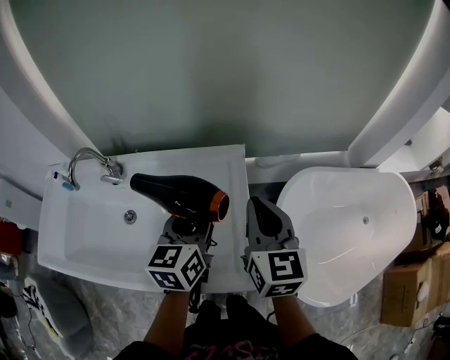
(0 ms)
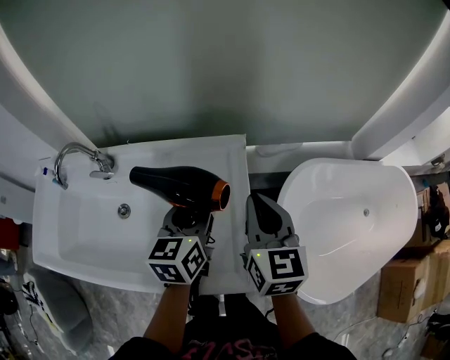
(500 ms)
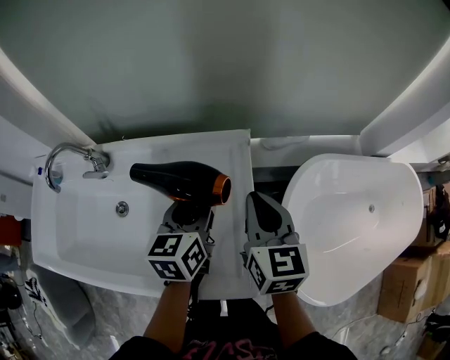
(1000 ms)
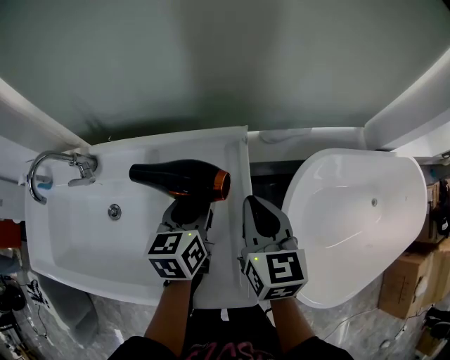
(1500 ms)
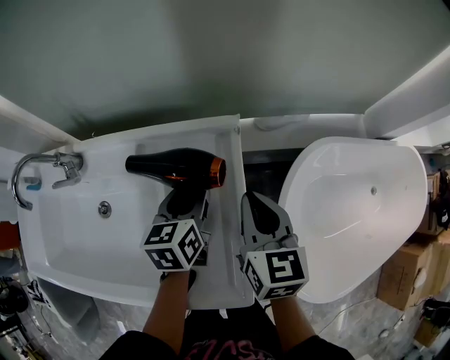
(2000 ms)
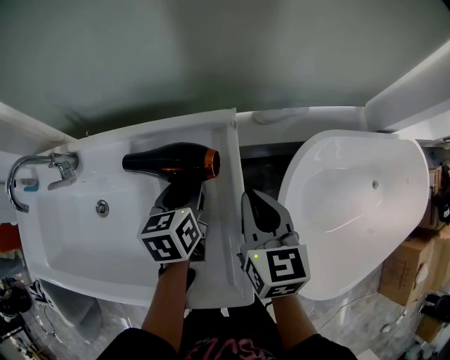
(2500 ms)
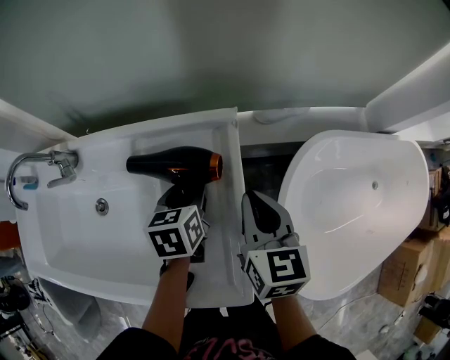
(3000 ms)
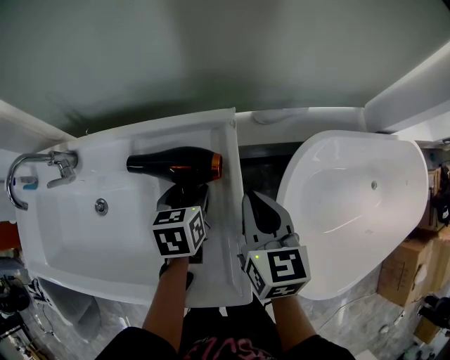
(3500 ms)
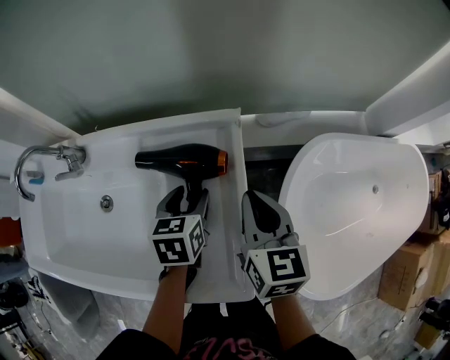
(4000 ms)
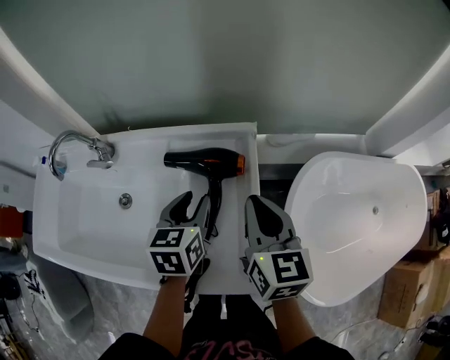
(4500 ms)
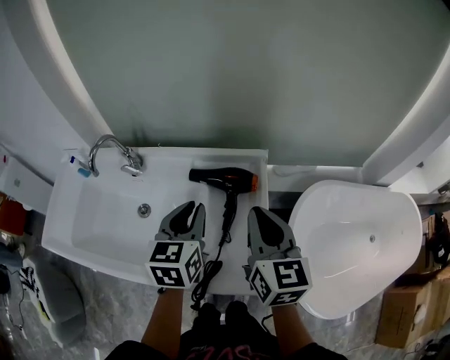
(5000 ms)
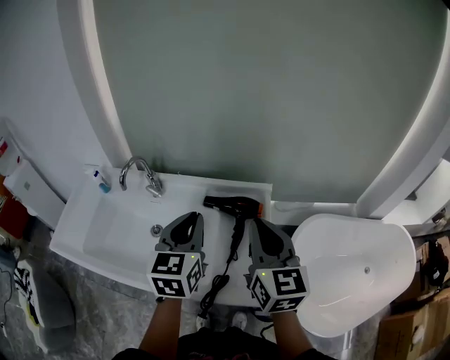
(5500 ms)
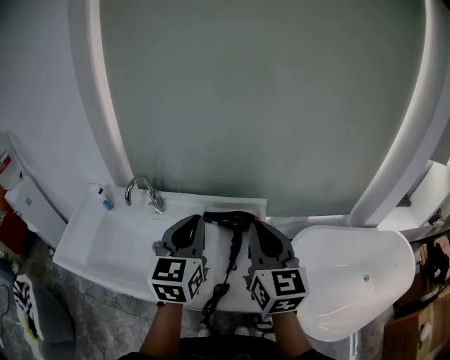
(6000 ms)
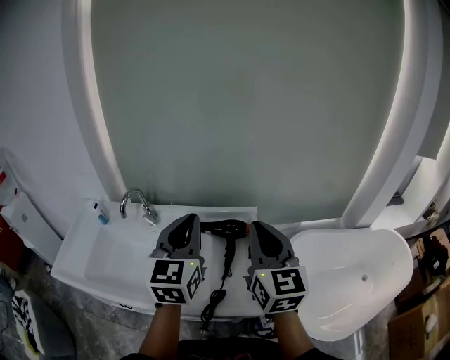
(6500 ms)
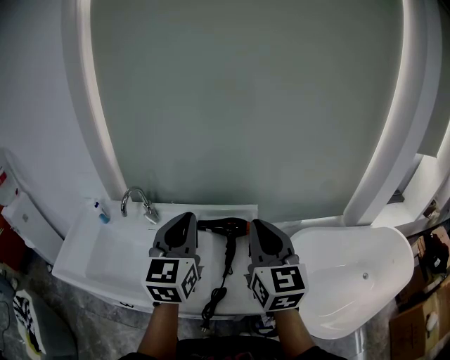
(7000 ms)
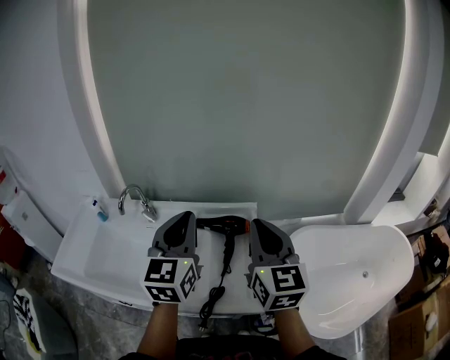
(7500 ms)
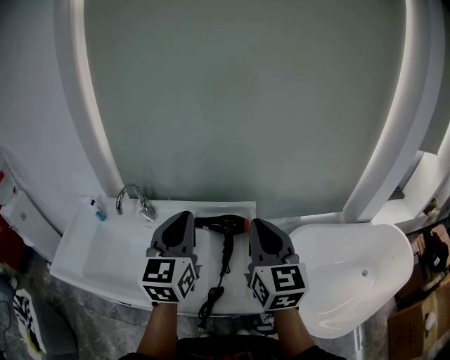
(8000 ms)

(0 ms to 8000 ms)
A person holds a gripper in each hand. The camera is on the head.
0 ms - 2000 ms: Both grippers move downward and forward, roughly 20 cm.
2000 ms - 4000 ms: The grippers make only small movements.
4000 ms - 6000 ms: The right gripper goes some 30 cm upward, backward and to the left, and changes its angle by some 30 degrees; the left gripper heads upward, covering some 35 cm, tilts its fingers about 40 degrees upward, and closes up.
6000 ms - 8000 ms: There are only small adjustments of the grippers.

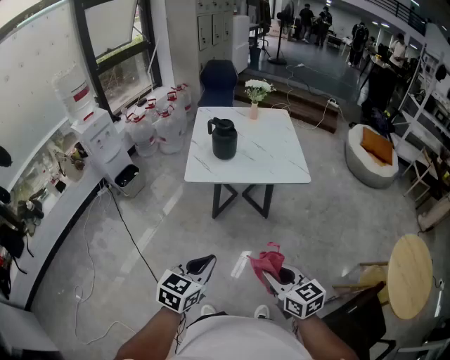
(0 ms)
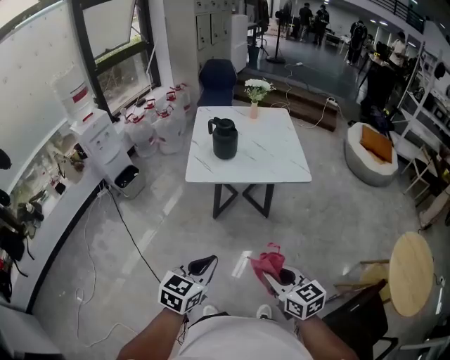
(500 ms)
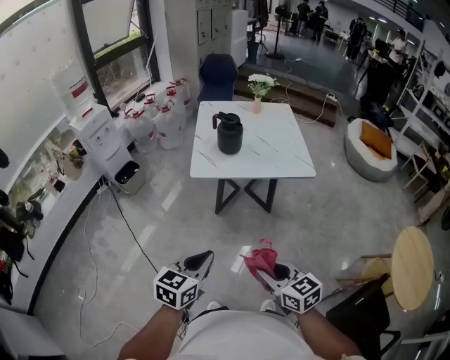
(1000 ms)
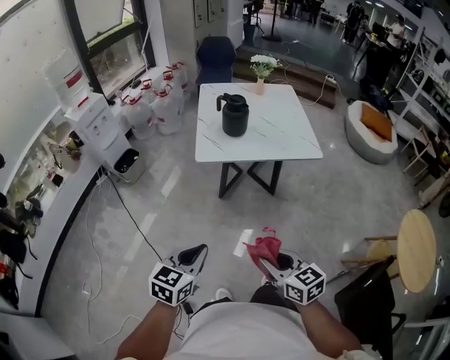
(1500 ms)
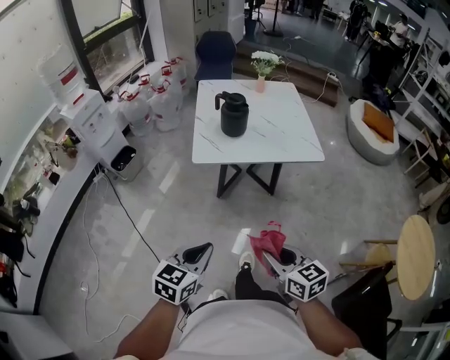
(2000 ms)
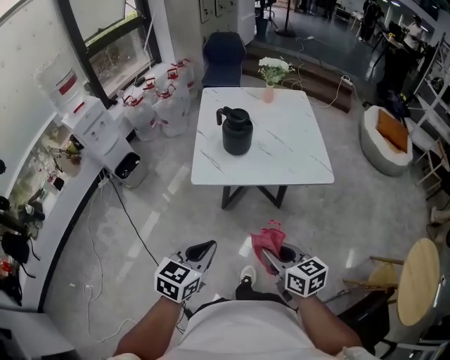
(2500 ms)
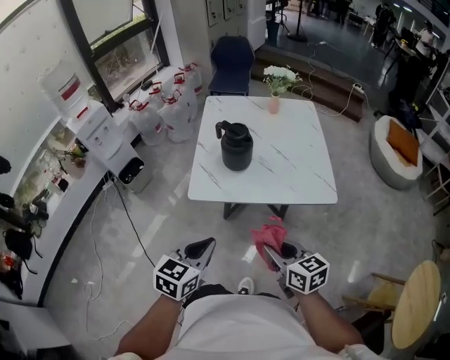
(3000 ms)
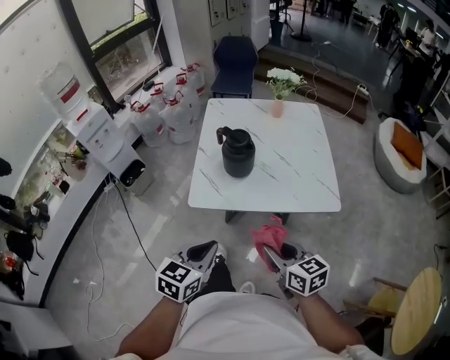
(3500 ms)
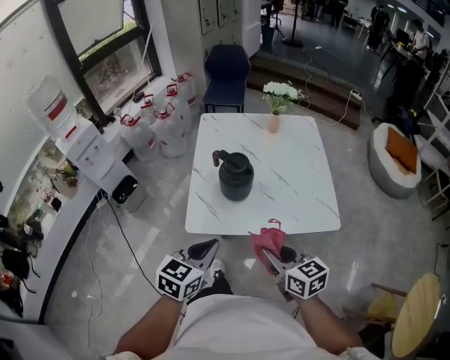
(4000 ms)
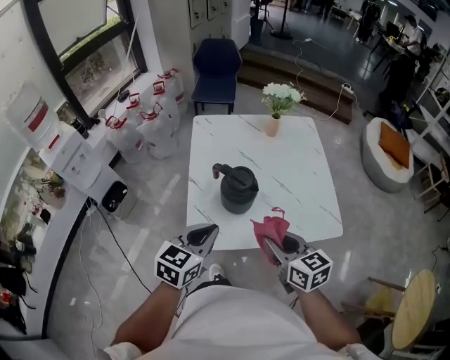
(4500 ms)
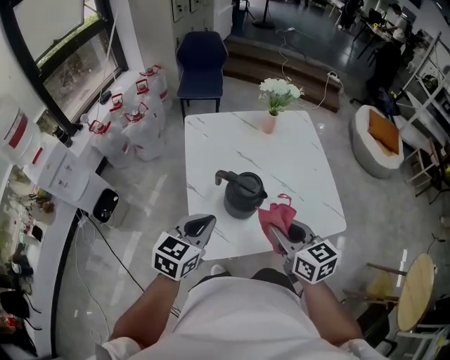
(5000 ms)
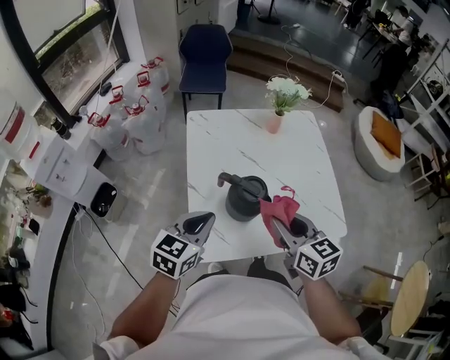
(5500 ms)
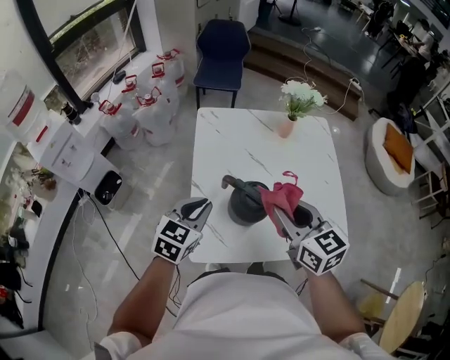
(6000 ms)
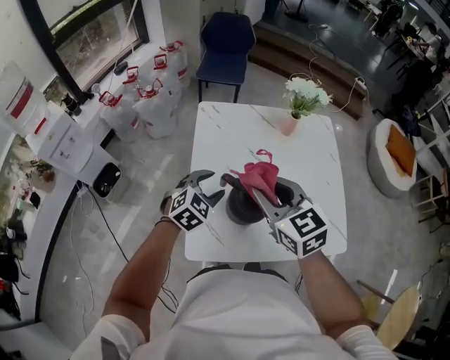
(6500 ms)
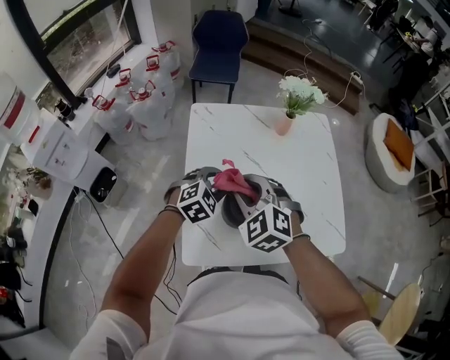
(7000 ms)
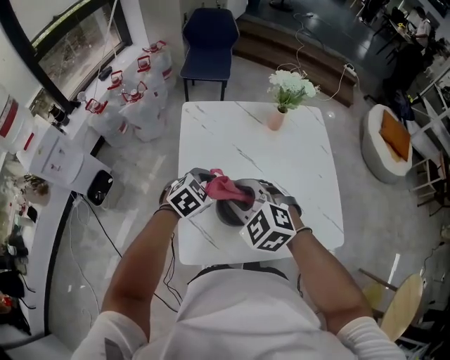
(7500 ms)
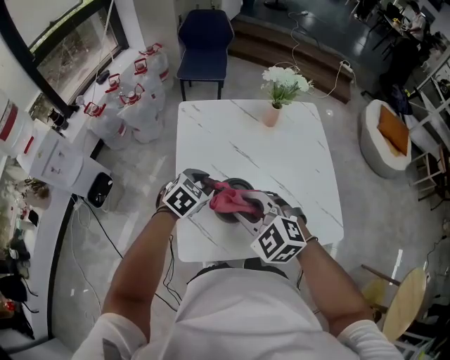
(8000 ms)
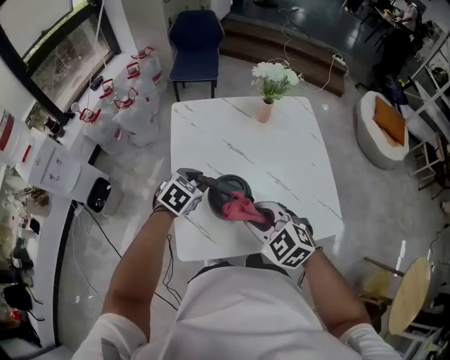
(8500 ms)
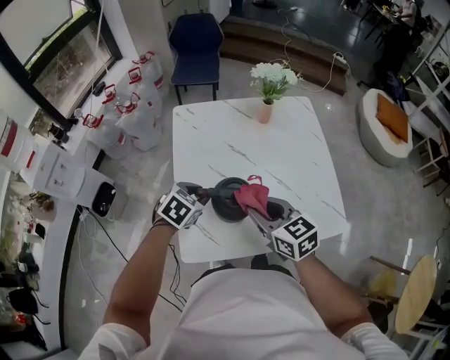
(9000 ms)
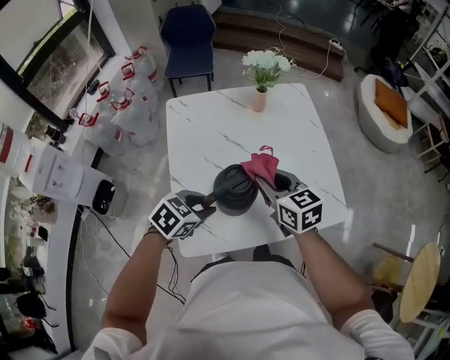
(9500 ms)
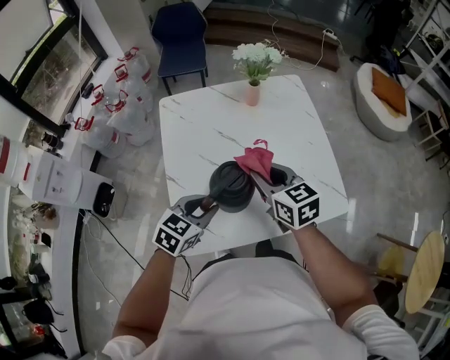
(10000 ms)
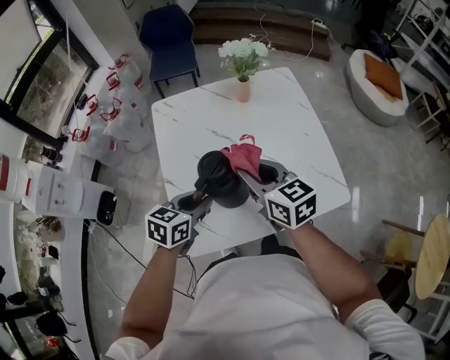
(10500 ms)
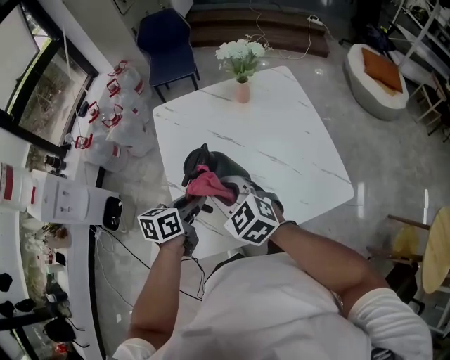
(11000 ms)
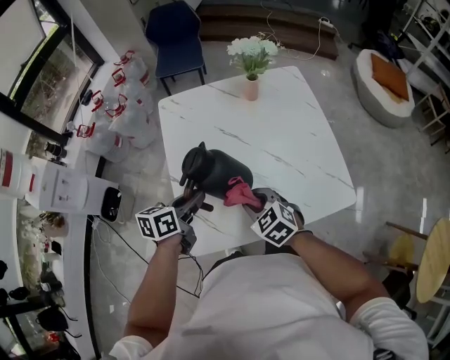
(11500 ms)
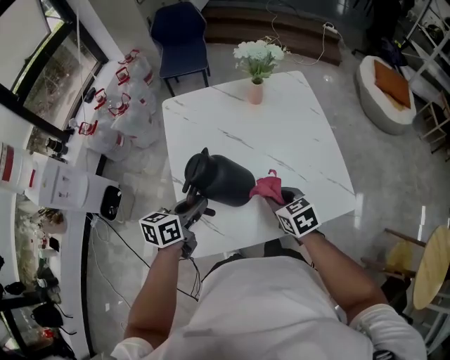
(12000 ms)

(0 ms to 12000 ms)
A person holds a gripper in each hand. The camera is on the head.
0 ms - 2000 ms: Both grippers move to the left, roughly 10 cm.
2000 ms - 4000 ms: Both grippers move forward, about 35 cm.
4000 ms - 6000 ms: The right gripper is displaced forward by about 25 cm; the left gripper moves forward and to the left, about 30 cm.
6000 ms - 8000 ms: The right gripper moves downward and to the left, roughly 10 cm, and rolls counterclockwise, seen from behind, by approximately 40 degrees, while the left gripper heads downward, forward and to the right, covering about 15 cm, turns by roughly 30 degrees, and opens and closes again.
8000 ms - 10000 ms: The right gripper heads to the right and forward, covering some 10 cm, and rotates around the line of its fingers by roughly 50 degrees, clockwise from behind; the left gripper heads backward and to the right, covering approximately 10 cm.
10000 ms - 12000 ms: The right gripper goes about 15 cm downward and backward, moves approximately 10 cm to the left and comes back, and swivels about 20 degrees; the left gripper moves to the left, approximately 5 cm, and turns by about 40 degrees.

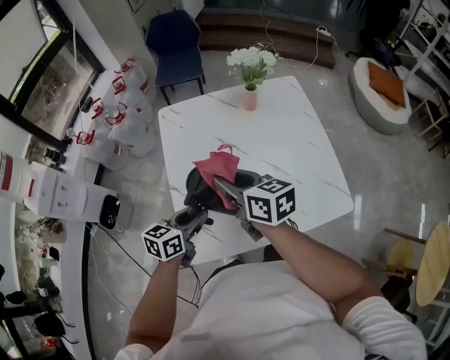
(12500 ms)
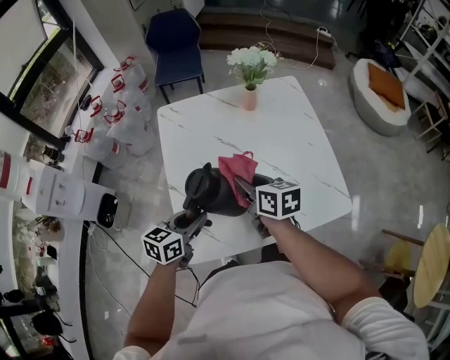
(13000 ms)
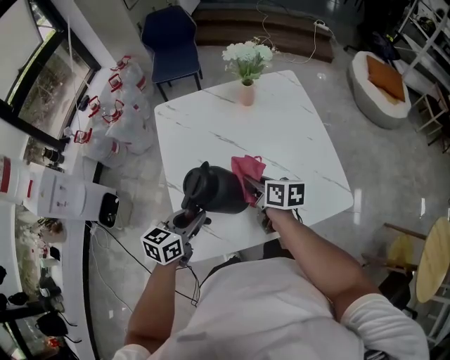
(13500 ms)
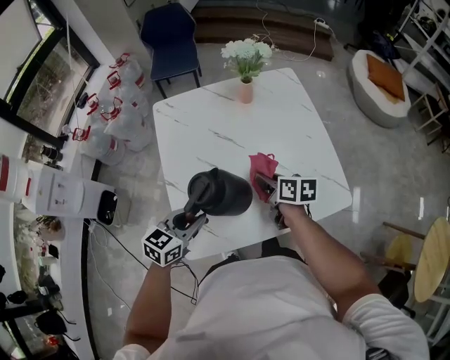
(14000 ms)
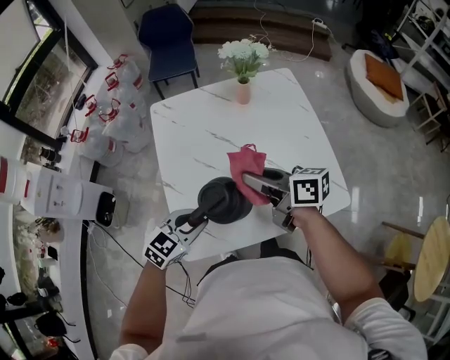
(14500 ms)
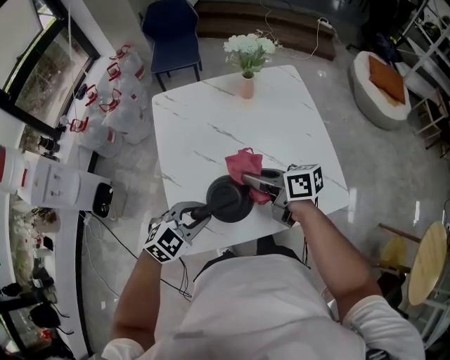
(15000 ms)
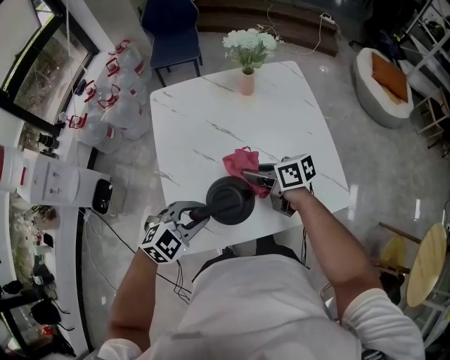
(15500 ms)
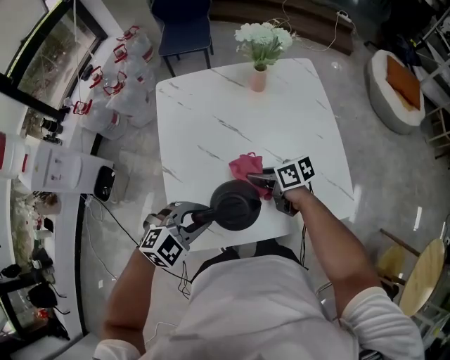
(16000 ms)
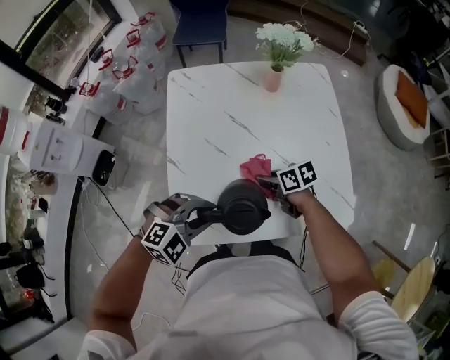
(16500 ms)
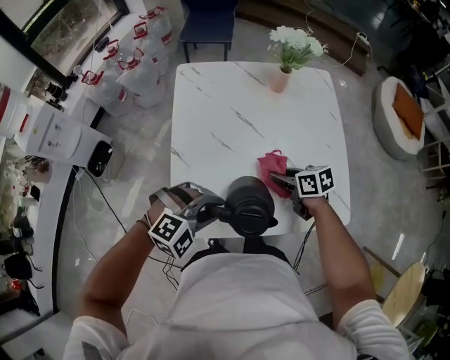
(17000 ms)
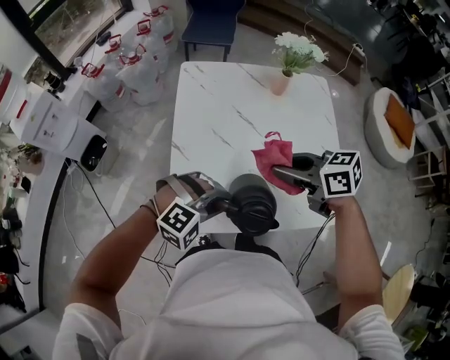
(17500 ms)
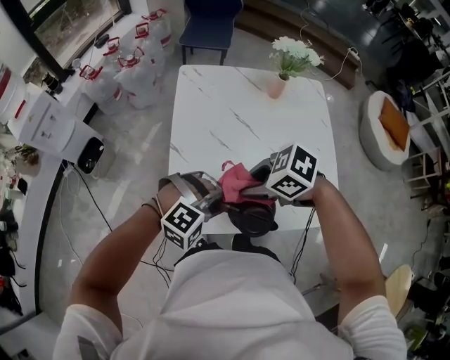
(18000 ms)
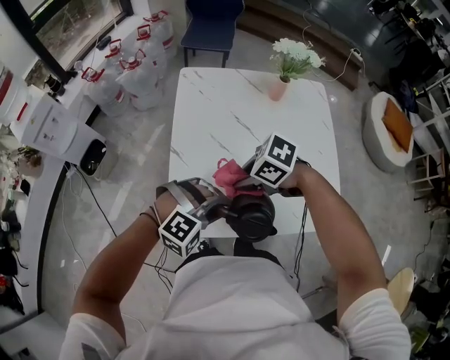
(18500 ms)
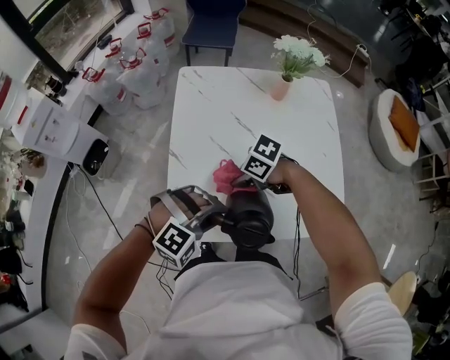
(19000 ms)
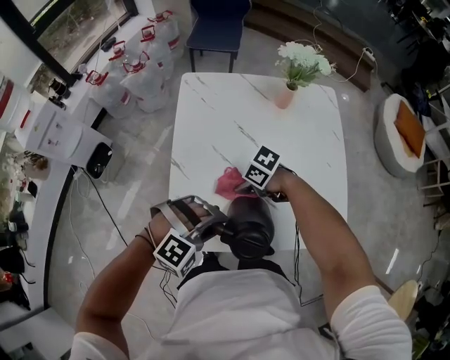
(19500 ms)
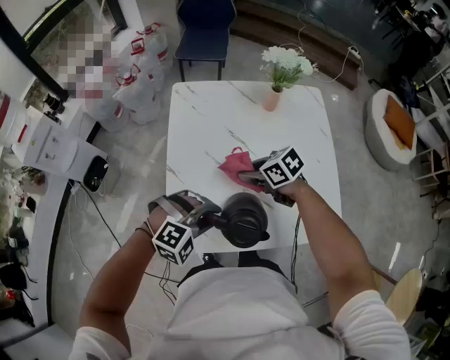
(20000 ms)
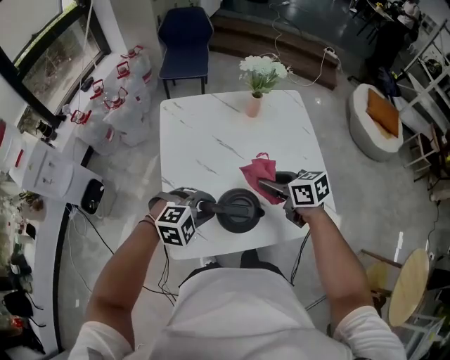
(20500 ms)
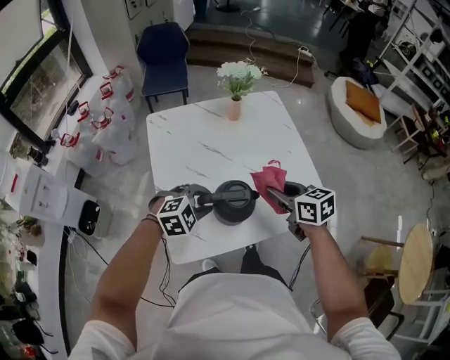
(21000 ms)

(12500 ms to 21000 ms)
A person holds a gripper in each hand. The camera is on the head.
12500 ms - 14500 ms: The left gripper turns by roughly 40 degrees; the right gripper shifts roughly 10 cm to the right, and goes downward and returns, about 15 cm each way.
14500 ms - 16500 ms: The right gripper shifts roughly 20 cm downward, and points its fingers about 30 degrees further downward. The left gripper changes its angle by some 30 degrees.
16500 ms - 19000 ms: The right gripper goes upward and returns, about 20 cm each way, and swivels roughly 50 degrees; the left gripper rotates approximately 20 degrees.
19000 ms - 21000 ms: The left gripper shifts by about 5 cm, and swivels roughly 20 degrees. The right gripper moves about 20 cm, and swivels approximately 70 degrees.
